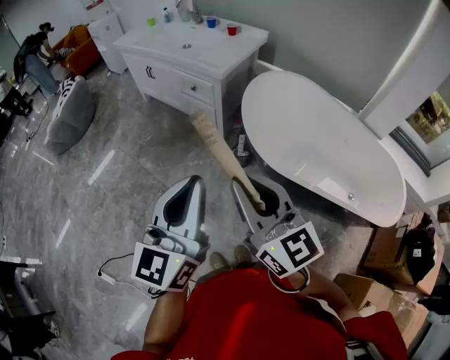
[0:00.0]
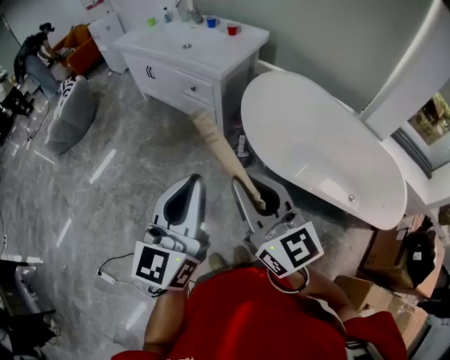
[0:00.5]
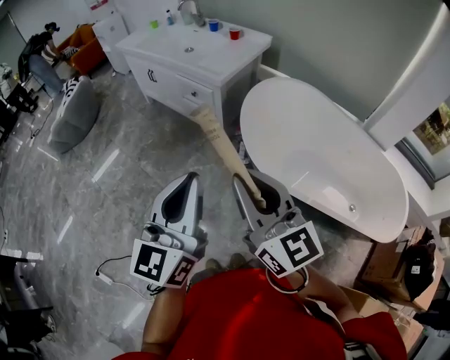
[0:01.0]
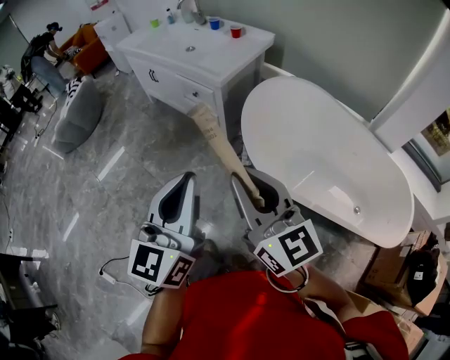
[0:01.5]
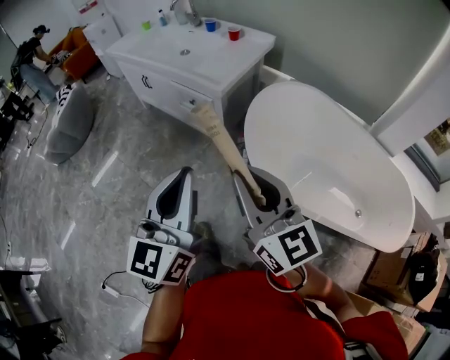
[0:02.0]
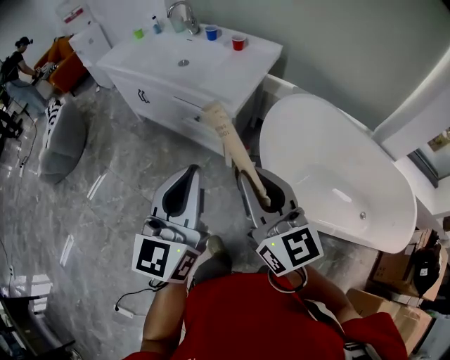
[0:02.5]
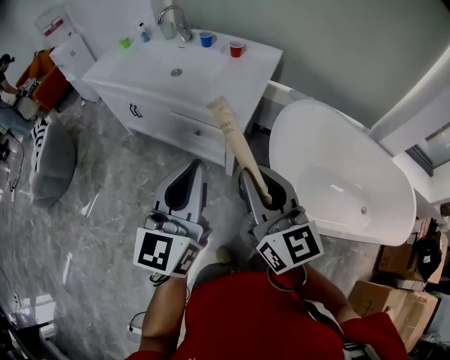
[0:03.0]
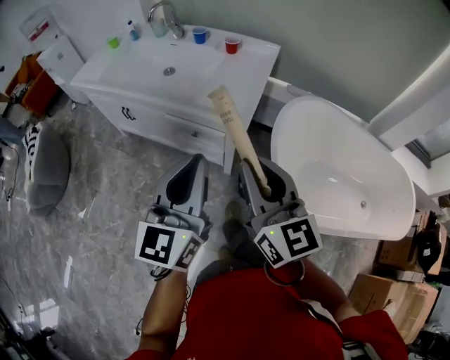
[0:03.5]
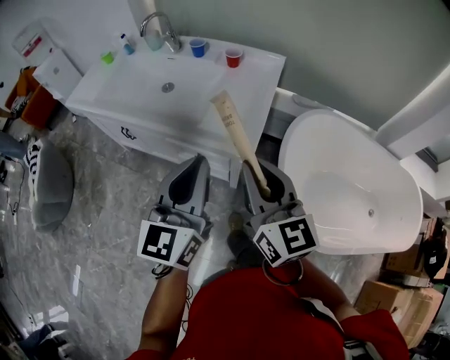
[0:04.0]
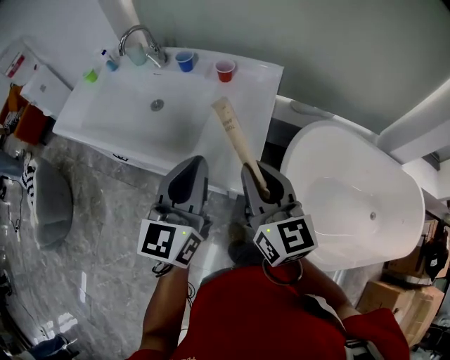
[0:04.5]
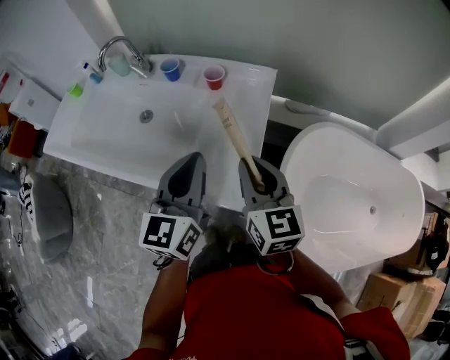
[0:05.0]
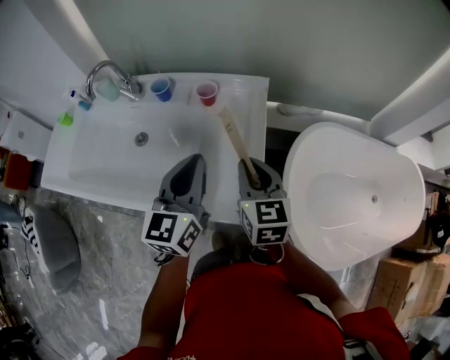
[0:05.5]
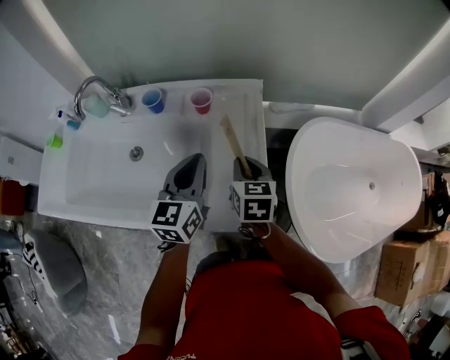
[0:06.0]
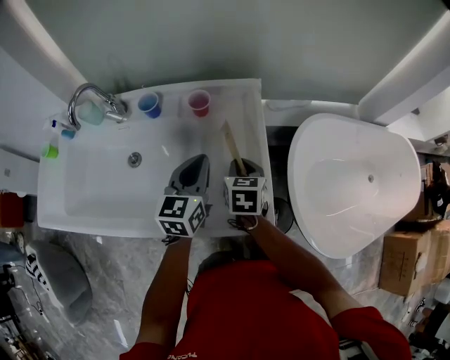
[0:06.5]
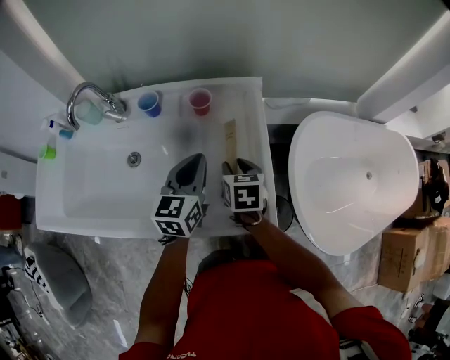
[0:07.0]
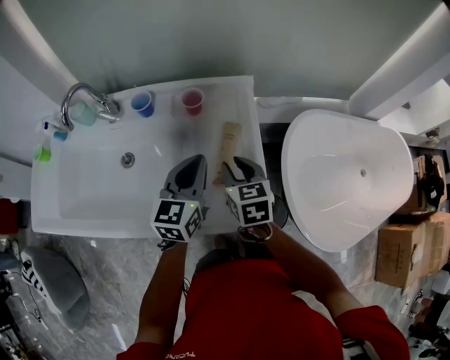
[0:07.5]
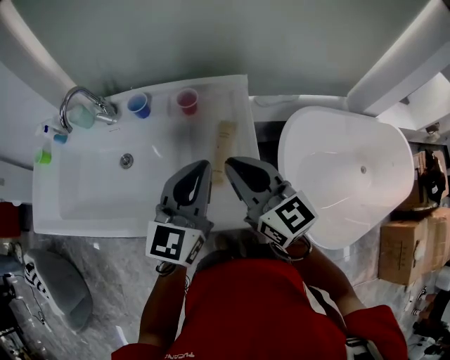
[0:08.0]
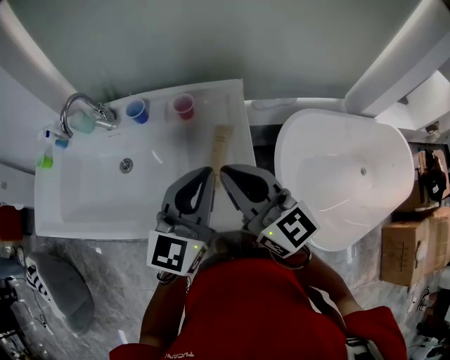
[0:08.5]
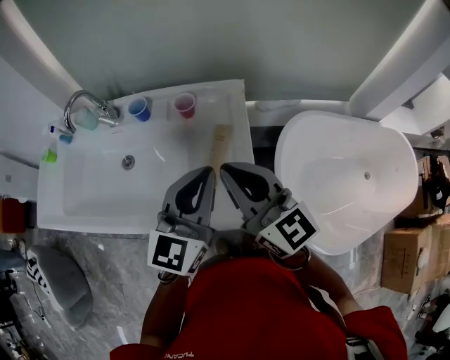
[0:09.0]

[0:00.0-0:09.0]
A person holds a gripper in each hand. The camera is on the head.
0:00.0 to 0:02.0: Both grippers move forward, approximately 15 cm.
0:02.0 to 0:04.5: The pair of grippers is taken forward, approximately 50 cm. The left gripper rotates approximately 20 degrees, while the right gripper changes its angle by approximately 30 degrees.
0:04.5 to 0:07.0: The left gripper changes place by some 25 cm, and turns by approximately 30 degrees. Meanwhile the right gripper is displaced downward by approximately 20 cm, tips its fingers downward by roughly 40 degrees, and opens up.
0:07.0 to 0:09.0: The left gripper moves upward, backward and to the right, about 20 cm, and changes its angle by some 20 degrees, while the right gripper goes roughly 25 cm upward, tilts its fingers approximately 50 degrees upward, and closes.

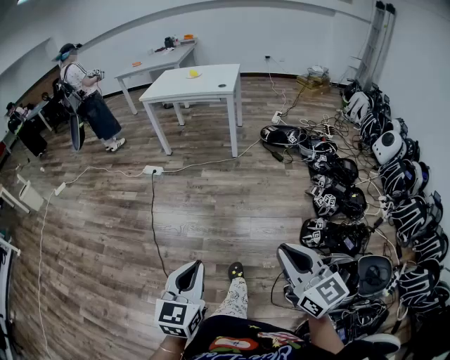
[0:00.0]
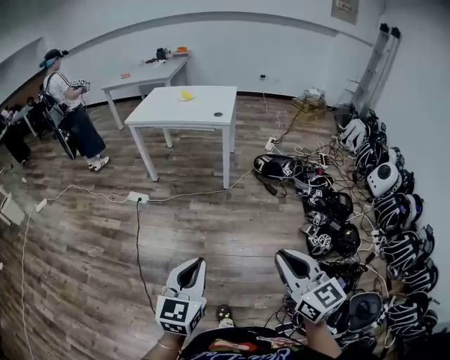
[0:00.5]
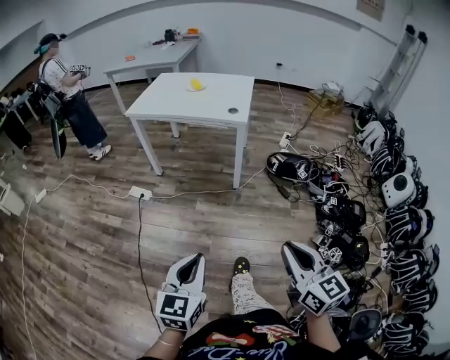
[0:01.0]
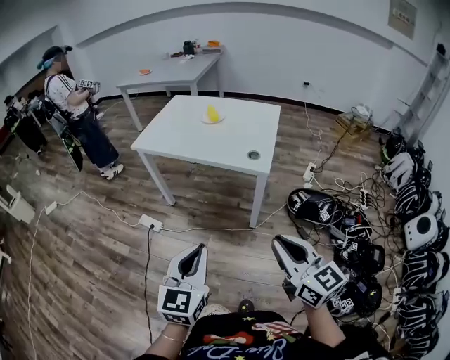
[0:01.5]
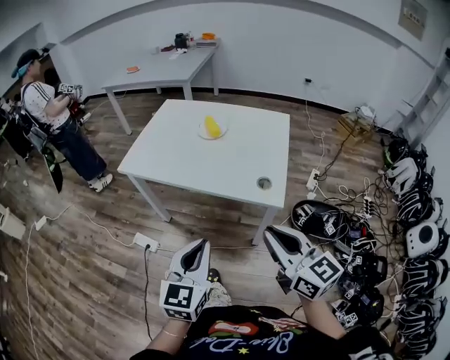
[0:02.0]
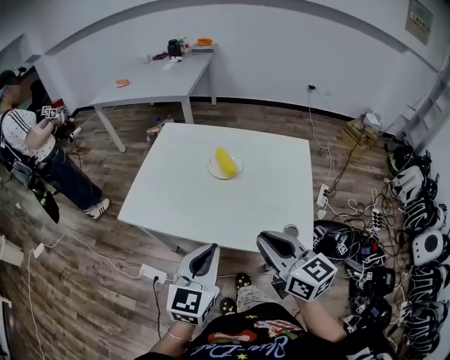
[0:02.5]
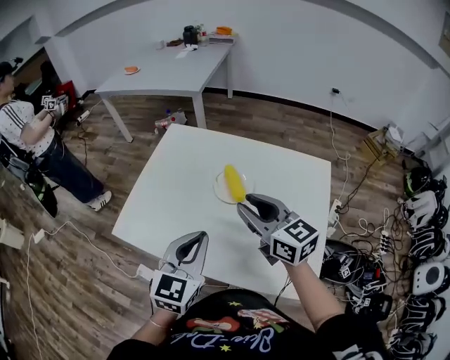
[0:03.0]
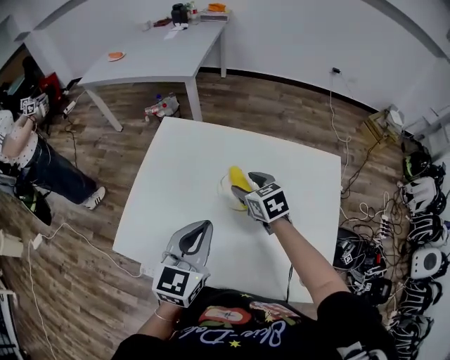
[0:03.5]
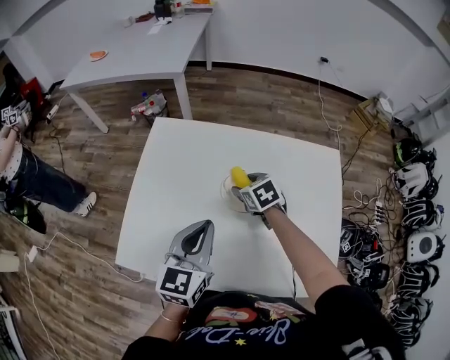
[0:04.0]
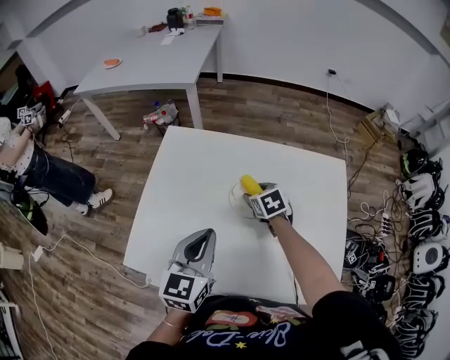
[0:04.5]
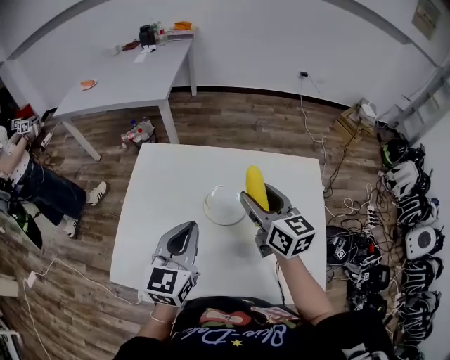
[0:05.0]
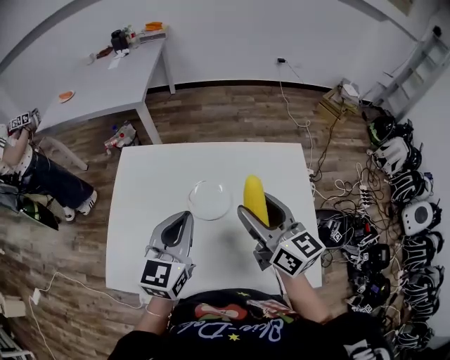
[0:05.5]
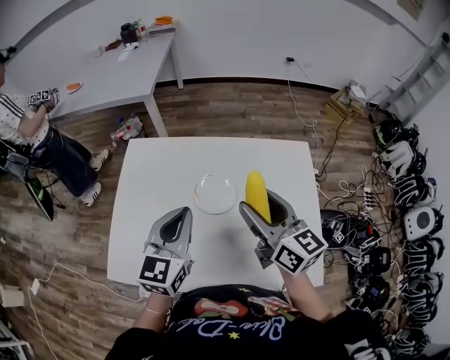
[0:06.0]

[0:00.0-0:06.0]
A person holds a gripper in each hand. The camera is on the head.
0:00.0 to 0:02.0: Both grippers are carried forward, about 1 m.
0:02.0 to 0:04.0: The two grippers travel together, forward, about 60 cm. The right gripper tilts its fingers roughly 50 degrees downward, and opens up.
0:04.0 to 0:06.0: The left gripper ends up about 5 cm from where it was. Meanwhile the right gripper heads upward, backward and to the right, covering about 30 cm, and points its fingers about 50 degrees further upward.

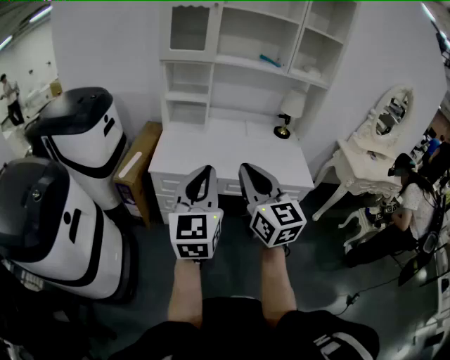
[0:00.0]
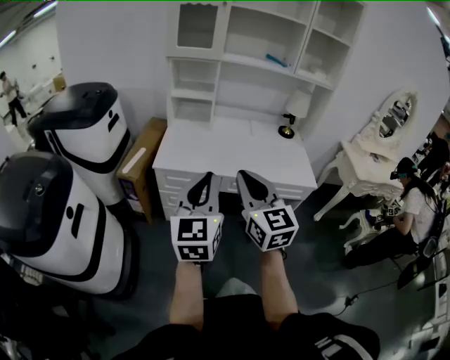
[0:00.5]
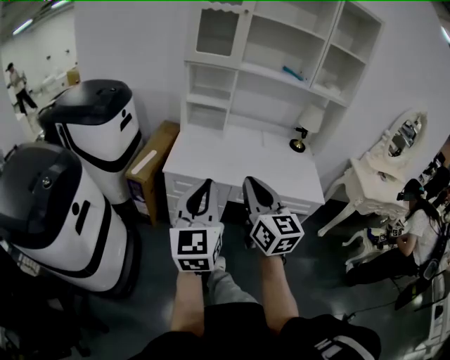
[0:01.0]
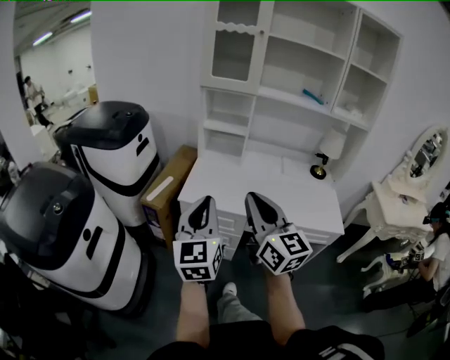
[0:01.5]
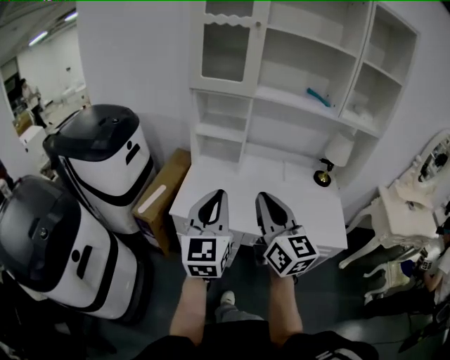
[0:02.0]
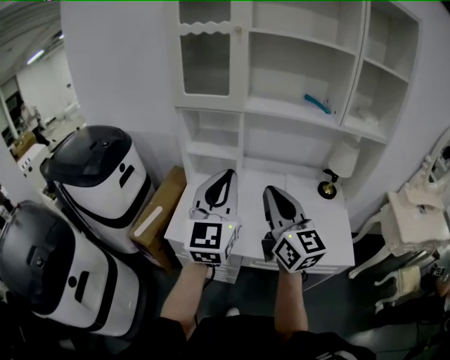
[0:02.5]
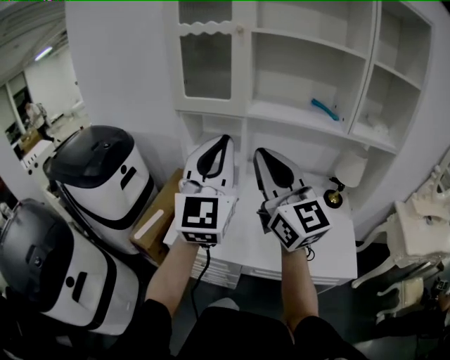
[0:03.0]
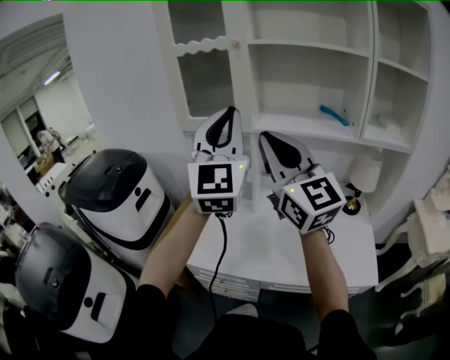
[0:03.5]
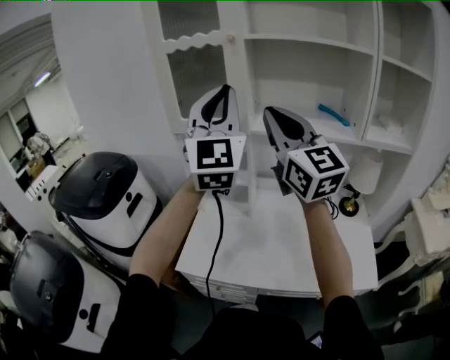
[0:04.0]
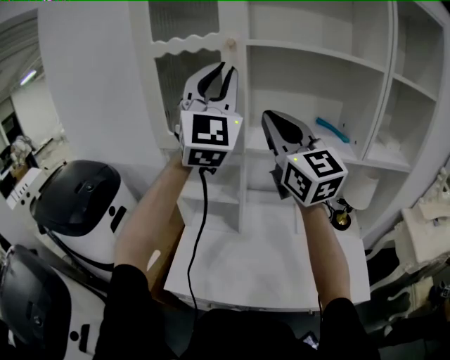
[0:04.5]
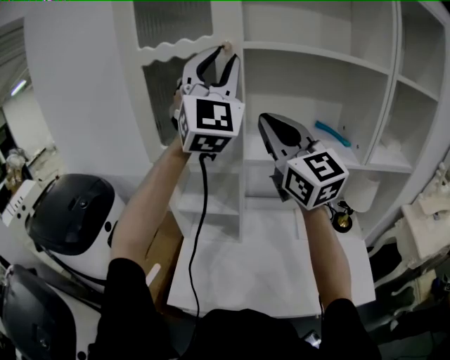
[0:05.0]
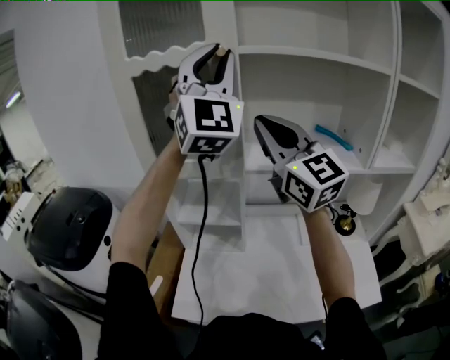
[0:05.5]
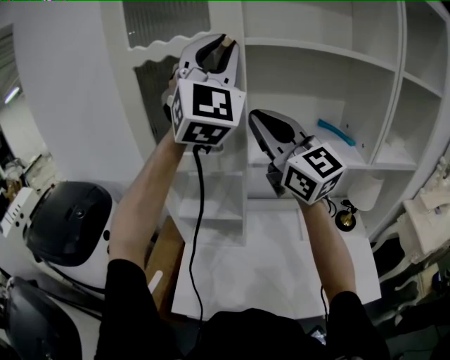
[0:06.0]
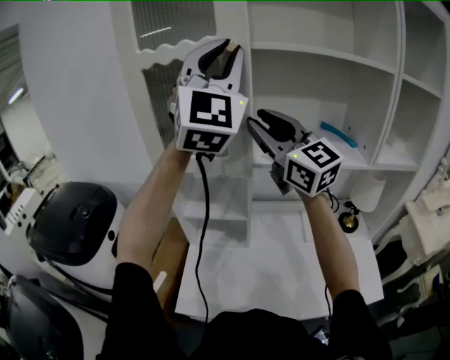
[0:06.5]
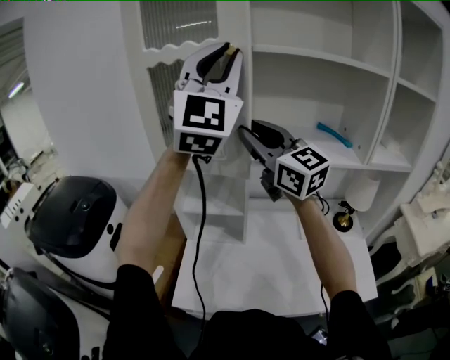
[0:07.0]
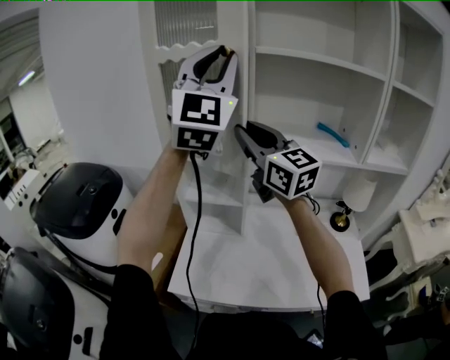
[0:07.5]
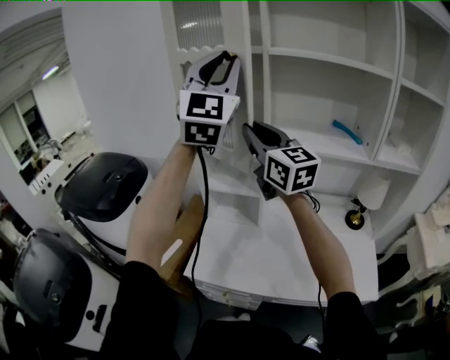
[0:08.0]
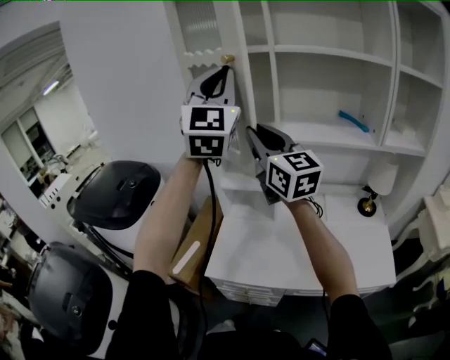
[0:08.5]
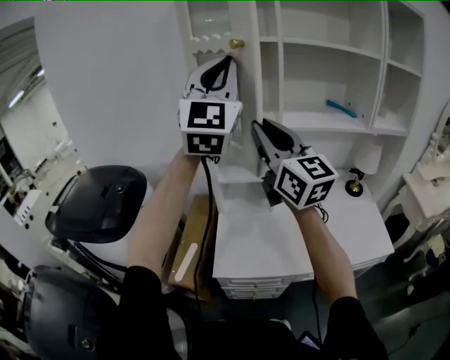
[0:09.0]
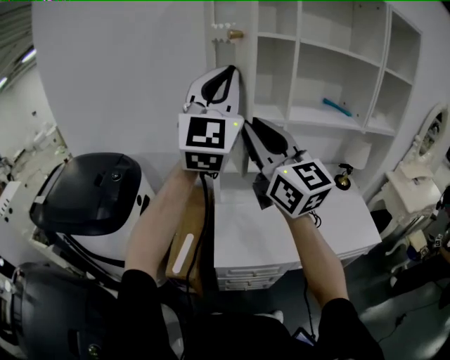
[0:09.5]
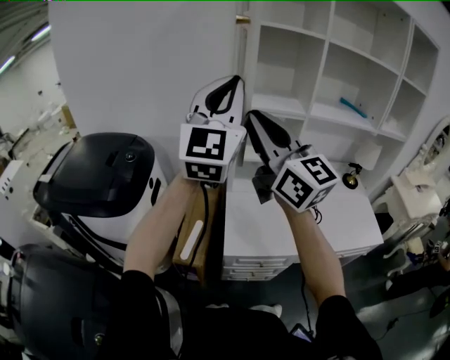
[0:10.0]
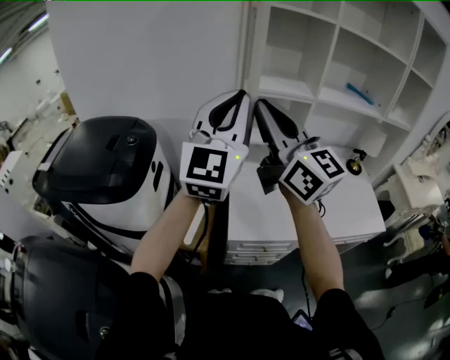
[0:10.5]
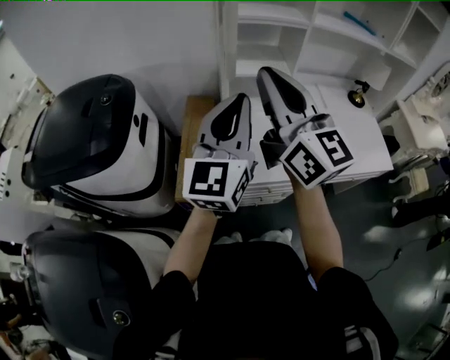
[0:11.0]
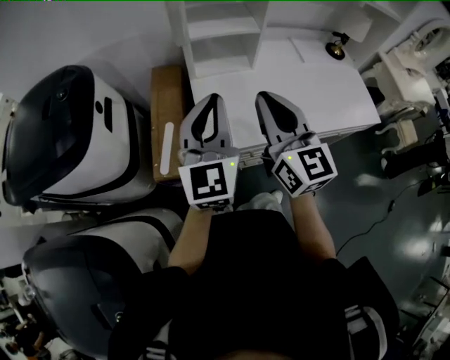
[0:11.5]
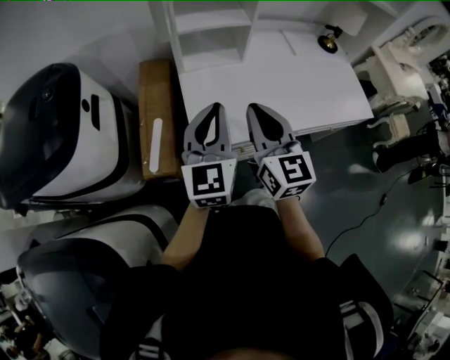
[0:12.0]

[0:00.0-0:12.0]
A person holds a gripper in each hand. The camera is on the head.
0:00.0 to 0:02.0: Both grippers travel together forward, about 20 cm.
0:02.0 to 0:04.0: The grippers both shift forward and upward by approximately 35 cm. The right gripper changes its angle by some 20 degrees, while the left gripper swivels approximately 30 degrees.
0:04.0 to 0:06.0: The left gripper goes about 20 cm forward and upward, and turns by about 20 degrees; the right gripper shifts some 15 cm forward.
0:06.0 to 0:08.0: Both grippers travel together backward and to the left, some 10 cm.
0:08.0 to 0:10.0: The right gripper goes roughly 30 cm to the left and backward; the left gripper goes roughly 30 cm to the left and downward, and changes its angle by about 20 degrees.
0:10.0 to 0:12.0: The two grippers go roughly 35 cm downward. The left gripper turns by some 40 degrees. The right gripper rotates some 40 degrees.
